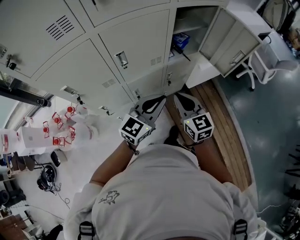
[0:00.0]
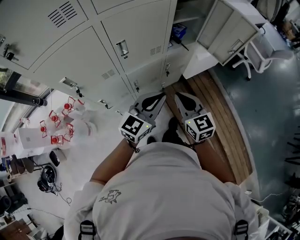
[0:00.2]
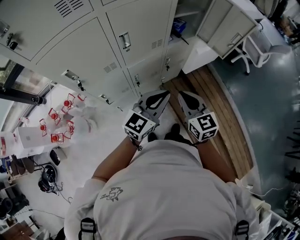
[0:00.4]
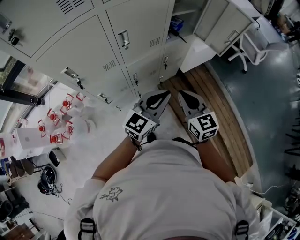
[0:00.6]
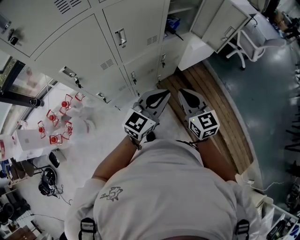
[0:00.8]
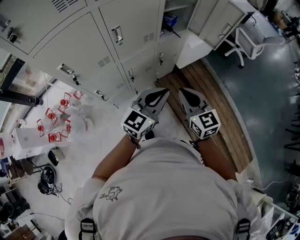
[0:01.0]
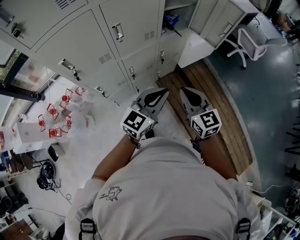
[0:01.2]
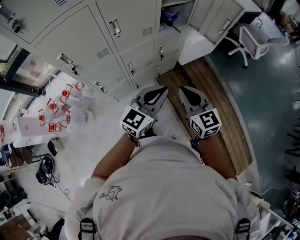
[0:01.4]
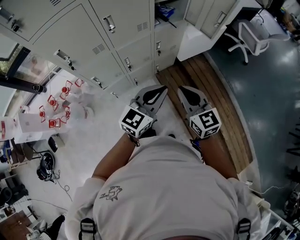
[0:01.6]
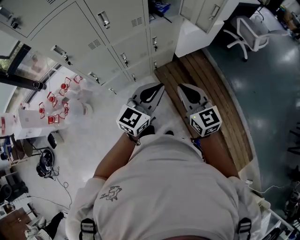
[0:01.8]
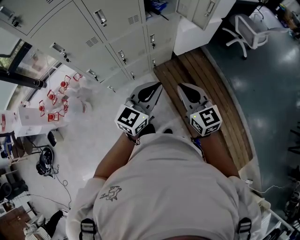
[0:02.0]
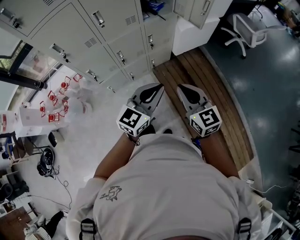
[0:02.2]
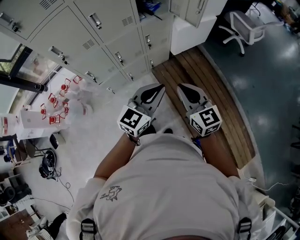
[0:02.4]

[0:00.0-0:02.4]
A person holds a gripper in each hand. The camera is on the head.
0:00.0 to 0:01.2: The two grippers go roughly 15 cm backward.
0:01.2 to 0:02.4: Both grippers travel together to the right and backward, approximately 20 cm.

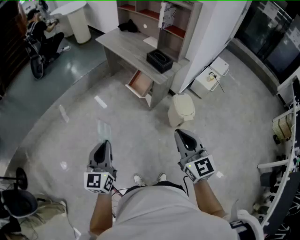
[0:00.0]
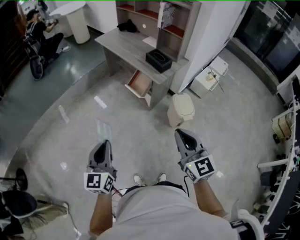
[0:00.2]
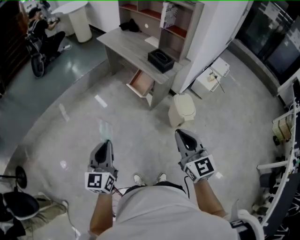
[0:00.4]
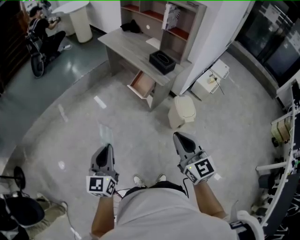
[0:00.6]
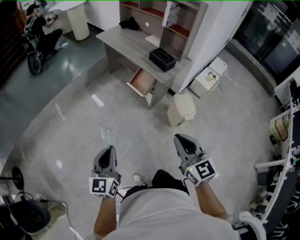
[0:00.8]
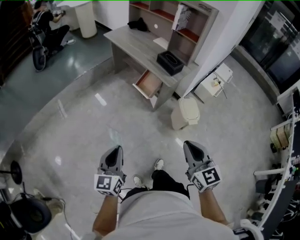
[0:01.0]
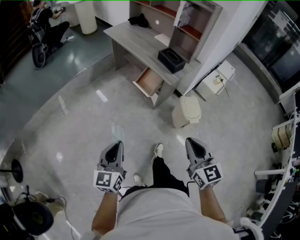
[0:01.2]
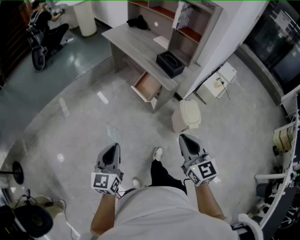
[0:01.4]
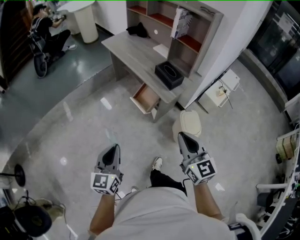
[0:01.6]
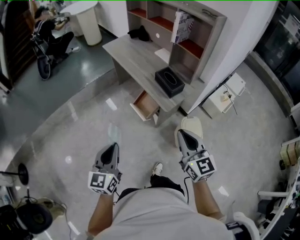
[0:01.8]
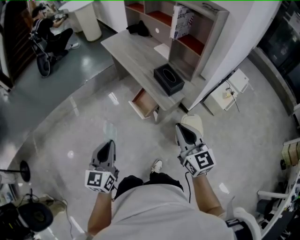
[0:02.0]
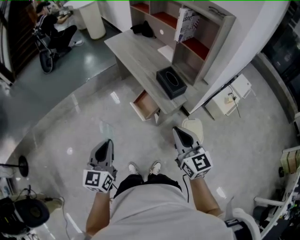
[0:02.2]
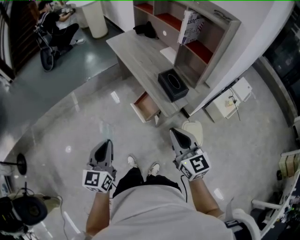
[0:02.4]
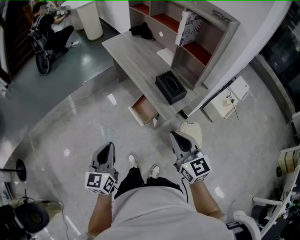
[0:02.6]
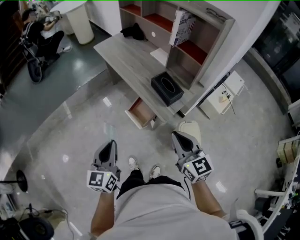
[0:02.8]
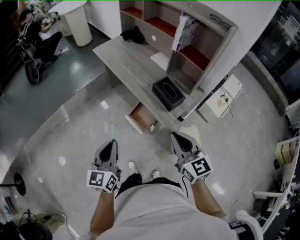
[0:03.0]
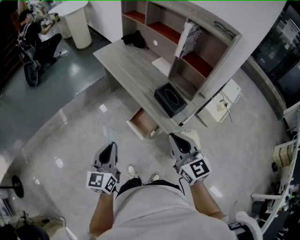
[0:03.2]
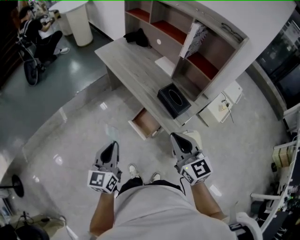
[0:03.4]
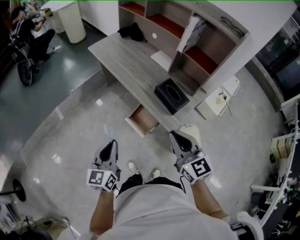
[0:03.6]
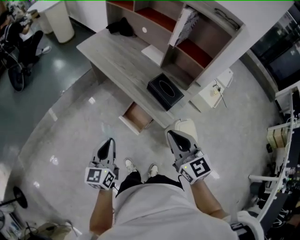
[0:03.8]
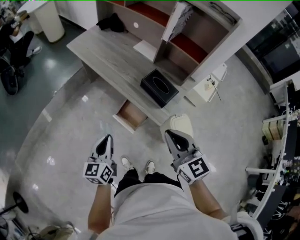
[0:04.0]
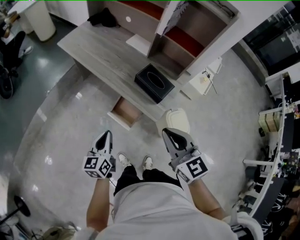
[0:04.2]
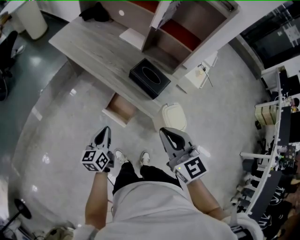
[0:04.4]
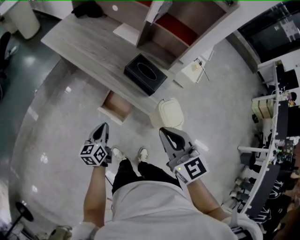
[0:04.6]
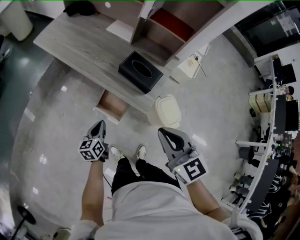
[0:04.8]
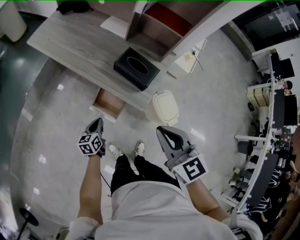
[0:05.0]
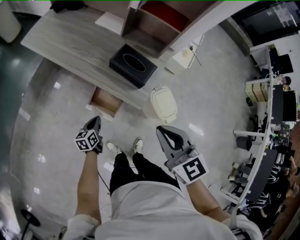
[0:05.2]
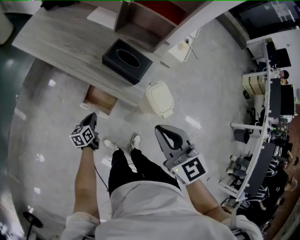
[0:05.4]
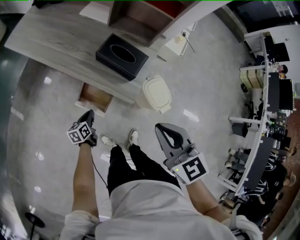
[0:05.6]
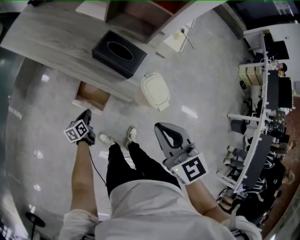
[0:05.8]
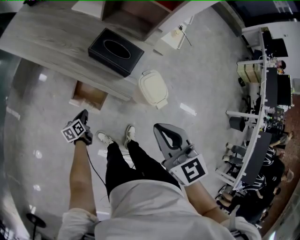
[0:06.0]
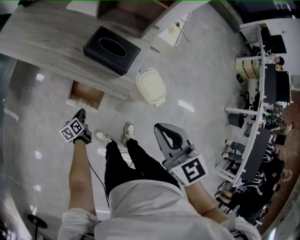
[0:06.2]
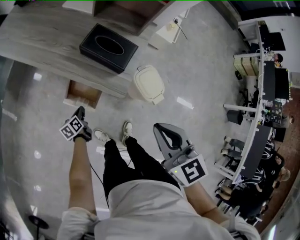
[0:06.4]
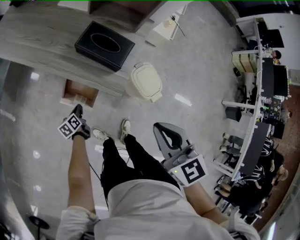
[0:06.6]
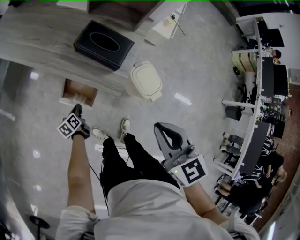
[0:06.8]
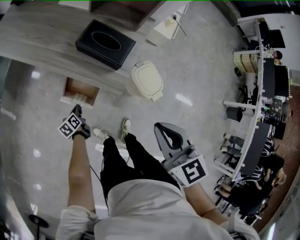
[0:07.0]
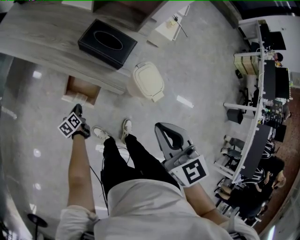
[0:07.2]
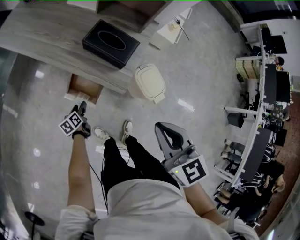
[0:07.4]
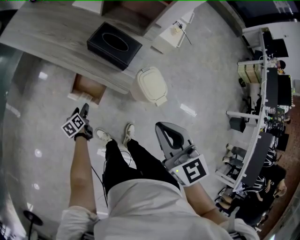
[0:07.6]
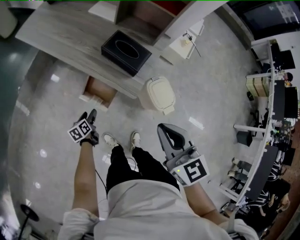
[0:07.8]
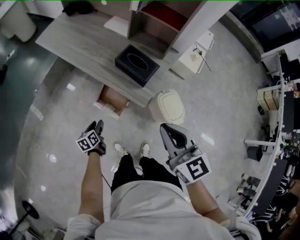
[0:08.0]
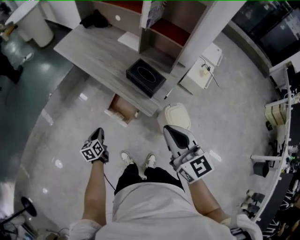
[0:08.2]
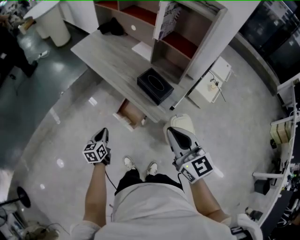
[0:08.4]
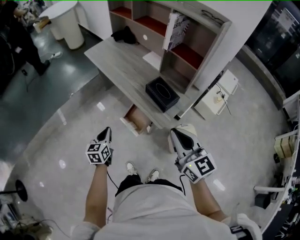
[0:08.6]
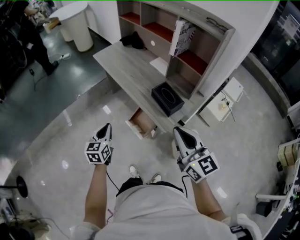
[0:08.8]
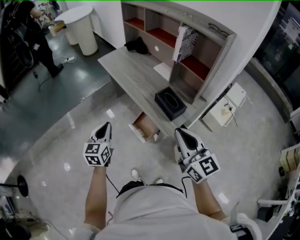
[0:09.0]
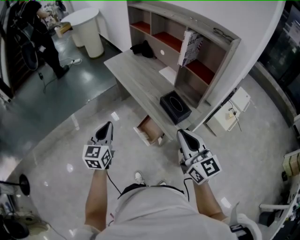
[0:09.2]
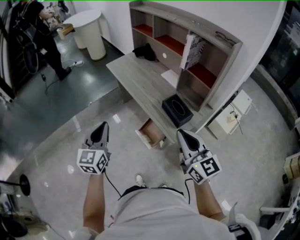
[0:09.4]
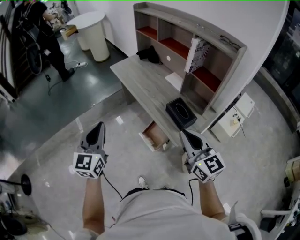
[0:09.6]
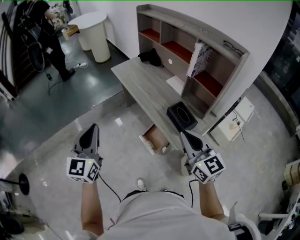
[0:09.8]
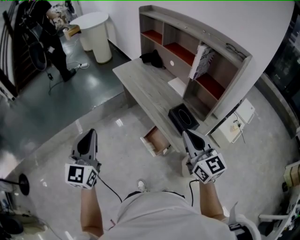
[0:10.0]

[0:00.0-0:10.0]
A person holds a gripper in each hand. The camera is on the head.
0:00.0 to 0:01.4: The two grippers go approximately 10 cm forward and downward.
0:01.4 to 0:02.8: The left gripper goes some 25 cm forward and to the right; the right gripper heads forward, covering some 25 cm.
0:02.8 to 0:04.2: The right gripper heads forward and to the left, covering about 10 cm. The left gripper travels forward and downward by about 20 cm, and changes its angle by approximately 20 degrees.
0:04.2 to 0:05.8: The left gripper heads downward, covering approximately 30 cm, and swivels approximately 40 degrees, while the right gripper is displaced downward and to the right by approximately 10 cm.
0:05.8 to 0:07.2: The left gripper changes place by approximately 5 cm.
0:07.2 to 0:08.6: The right gripper is displaced upward by about 15 cm, and rotates about 40 degrees, while the left gripper travels upward by approximately 35 cm, swivels some 40 degrees, and opens and closes again.
0:08.6 to 0:10.0: The left gripper is displaced upward by about 30 cm, and rotates some 40 degrees; the right gripper heads forward and upward, covering approximately 10 cm.

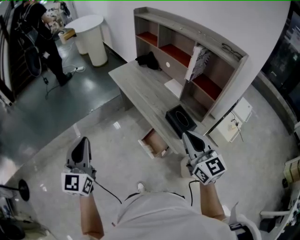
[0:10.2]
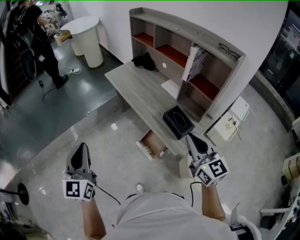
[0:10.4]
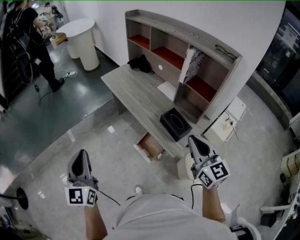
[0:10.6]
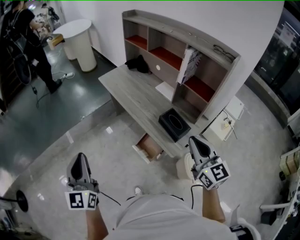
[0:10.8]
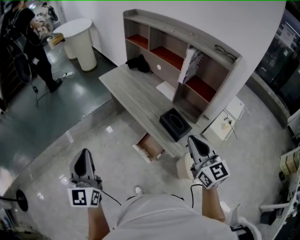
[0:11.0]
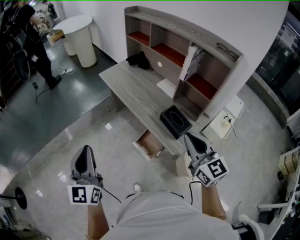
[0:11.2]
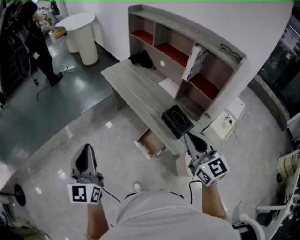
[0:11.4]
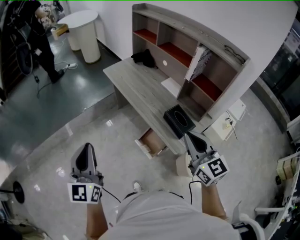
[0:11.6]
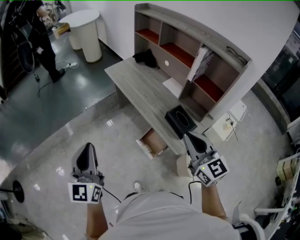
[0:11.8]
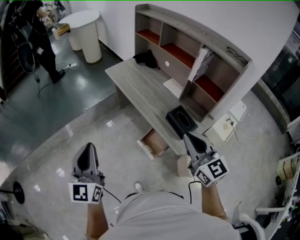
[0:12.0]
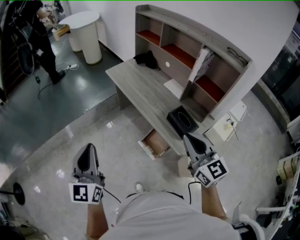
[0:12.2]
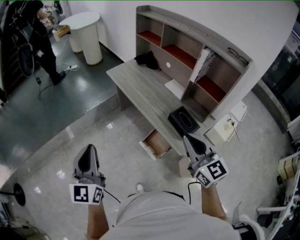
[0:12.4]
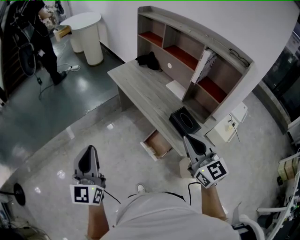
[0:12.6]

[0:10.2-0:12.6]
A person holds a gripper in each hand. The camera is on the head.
0:10.2 to 0:11.4: The grippers move only a little.
0:11.4 to 0:12.6: The right gripper heads to the left, covering about 5 cm.

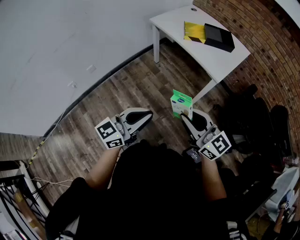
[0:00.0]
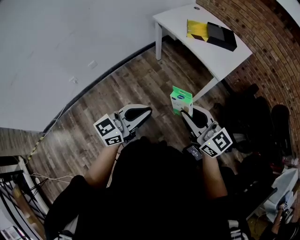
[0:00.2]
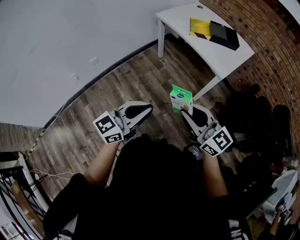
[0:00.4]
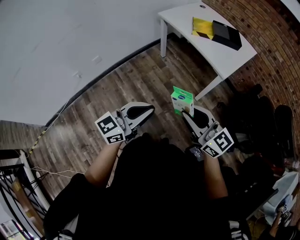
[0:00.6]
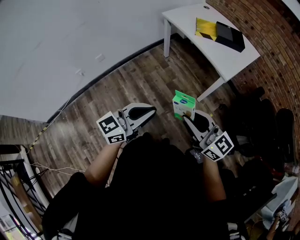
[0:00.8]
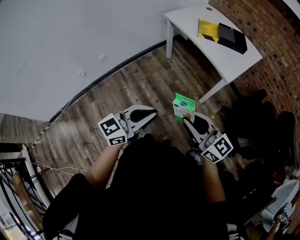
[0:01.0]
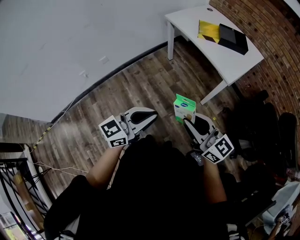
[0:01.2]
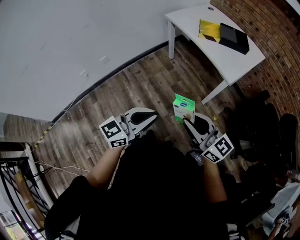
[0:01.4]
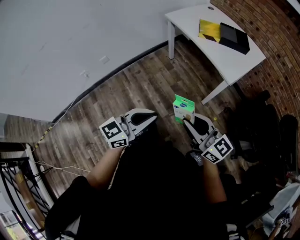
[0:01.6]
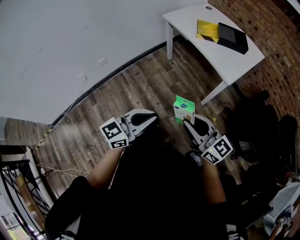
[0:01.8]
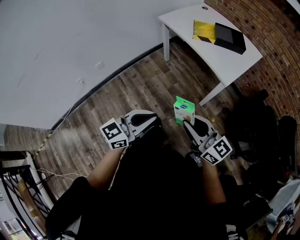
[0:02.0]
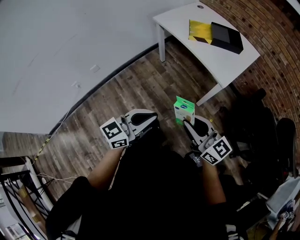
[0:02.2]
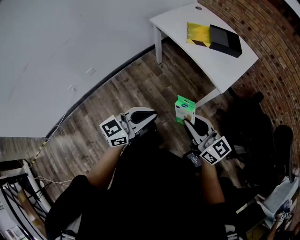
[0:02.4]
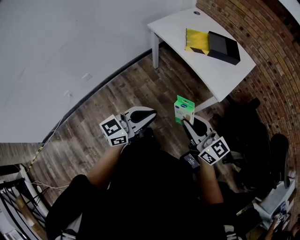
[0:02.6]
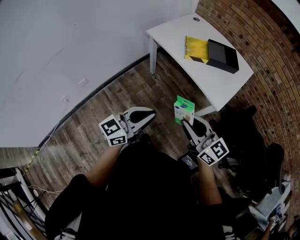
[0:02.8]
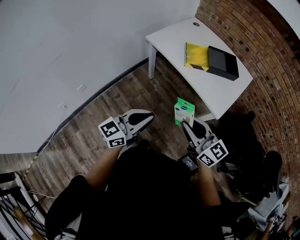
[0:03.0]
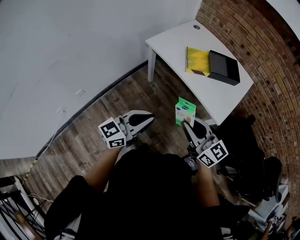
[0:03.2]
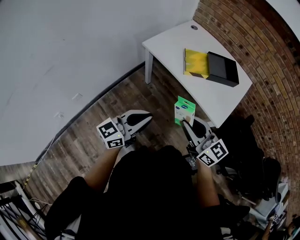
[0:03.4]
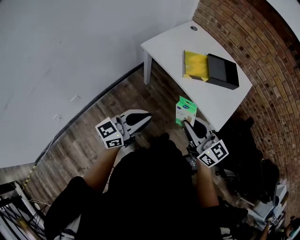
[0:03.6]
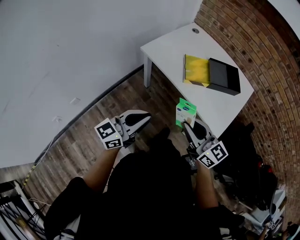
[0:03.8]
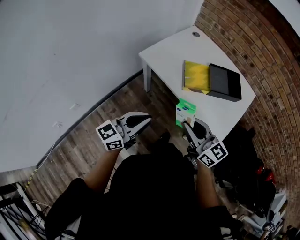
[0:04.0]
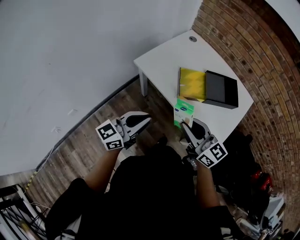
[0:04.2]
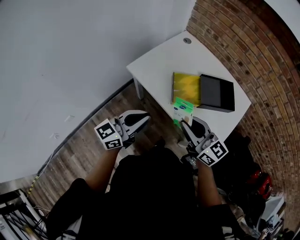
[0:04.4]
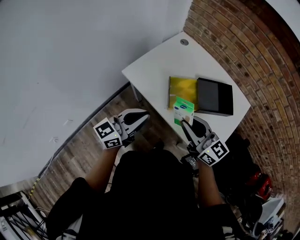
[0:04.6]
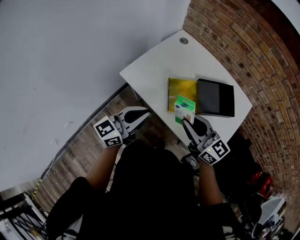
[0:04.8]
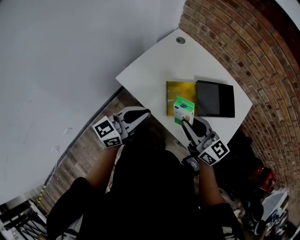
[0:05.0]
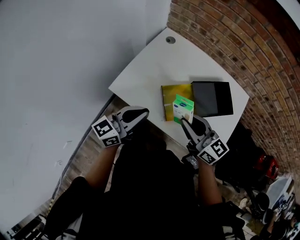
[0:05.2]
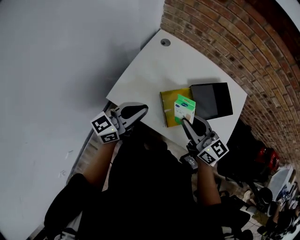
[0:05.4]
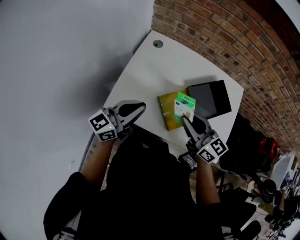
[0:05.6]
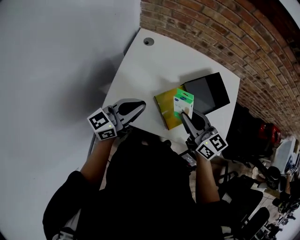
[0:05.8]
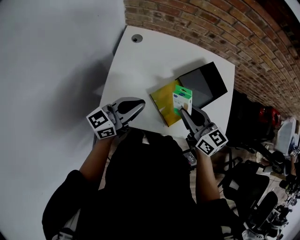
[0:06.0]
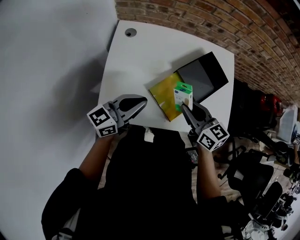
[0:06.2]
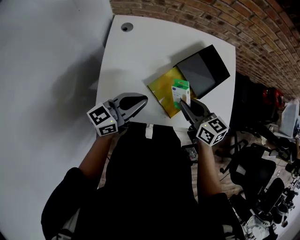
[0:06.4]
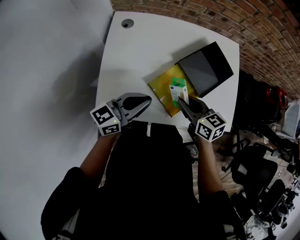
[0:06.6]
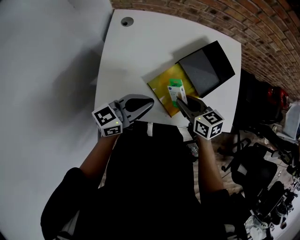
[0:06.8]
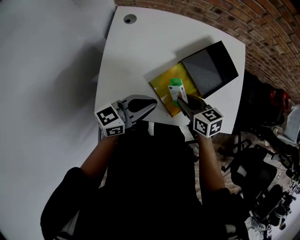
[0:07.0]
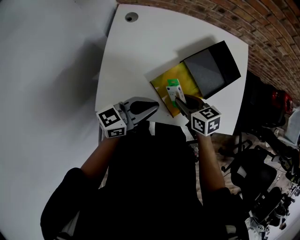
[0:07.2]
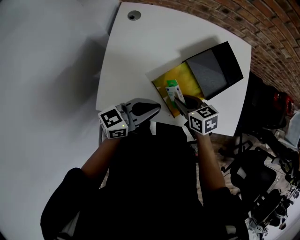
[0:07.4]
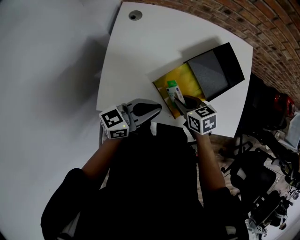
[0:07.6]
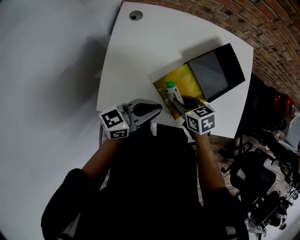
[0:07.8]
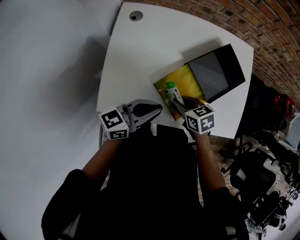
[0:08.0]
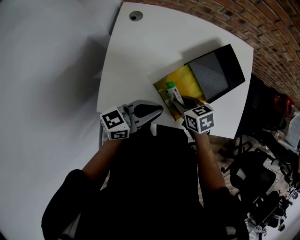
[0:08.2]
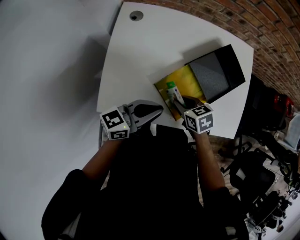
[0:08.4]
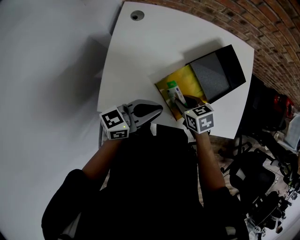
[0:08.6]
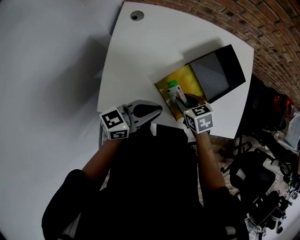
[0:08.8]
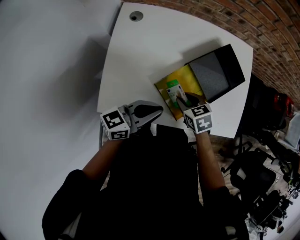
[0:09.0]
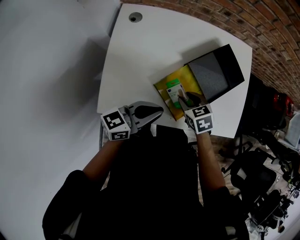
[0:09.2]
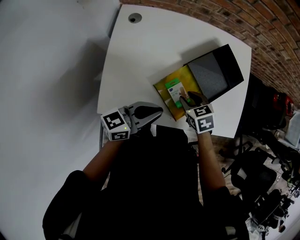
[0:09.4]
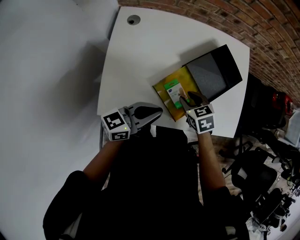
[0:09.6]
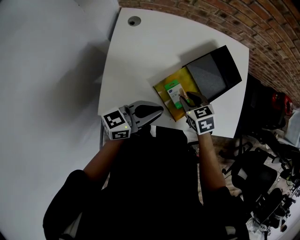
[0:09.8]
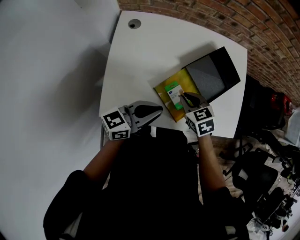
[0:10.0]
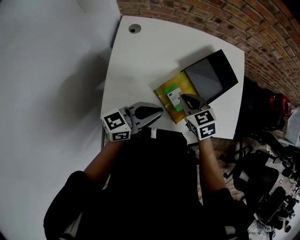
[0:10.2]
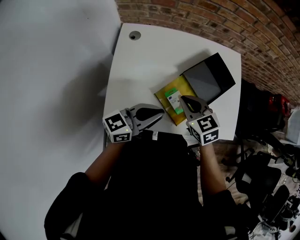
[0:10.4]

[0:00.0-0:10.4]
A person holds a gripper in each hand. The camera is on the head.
0:00.0 to 0:01.4: The grippers move only a little.
0:01.4 to 0:03.0: Both grippers travel together forward, some 25 cm.
0:03.0 to 0:04.4: Both grippers move forward, approximately 30 cm.
0:04.4 to 0:06.0: The right gripper shifts by about 25 cm, and turns by about 40 degrees; the left gripper ends up about 30 cm from where it was, and changes its angle by roughly 40 degrees.
0:06.0 to 0:07.4: The left gripper is displaced to the right and downward by about 10 cm. Meanwhile the right gripper is displaced downward by approximately 15 cm, and changes its angle by approximately 30 degrees.
0:07.4 to 0:09.0: The grippers make only small movements.
0:09.0 to 0:10.4: The right gripper travels upward by about 15 cm, changes its angle by about 20 degrees, and closes its fingers. The left gripper heads upward, covering some 5 cm.
